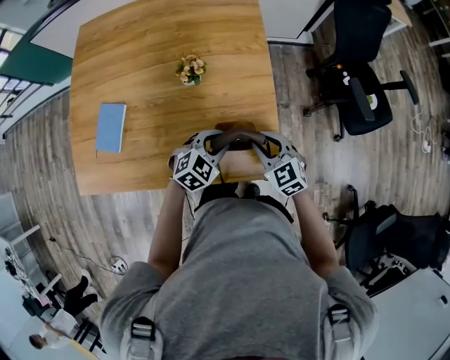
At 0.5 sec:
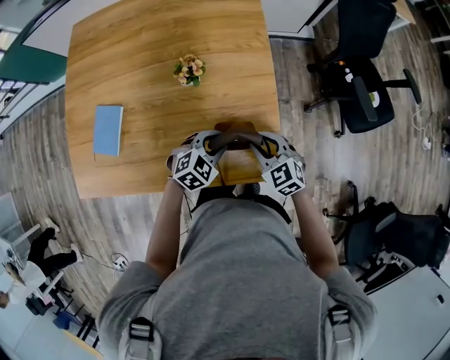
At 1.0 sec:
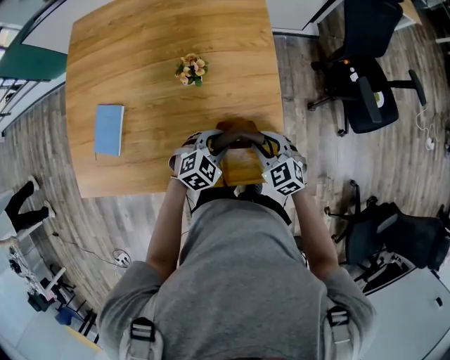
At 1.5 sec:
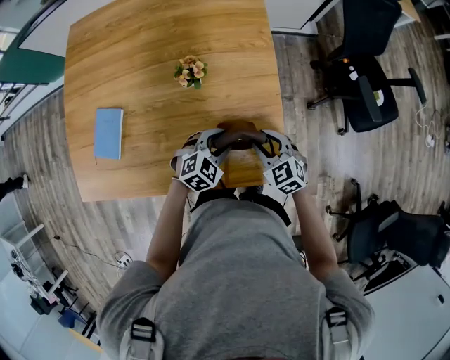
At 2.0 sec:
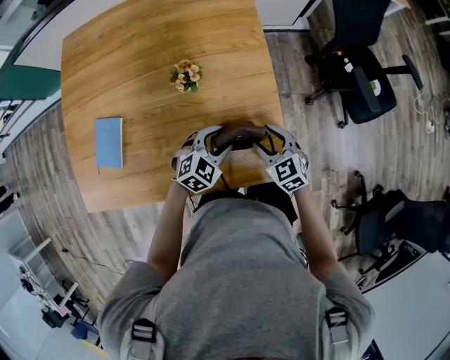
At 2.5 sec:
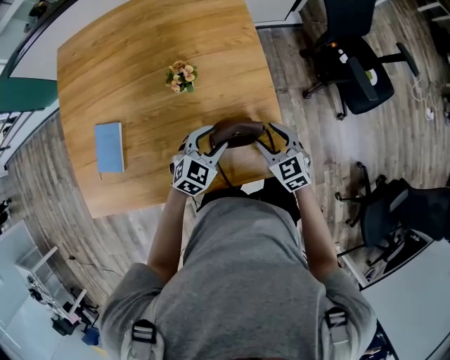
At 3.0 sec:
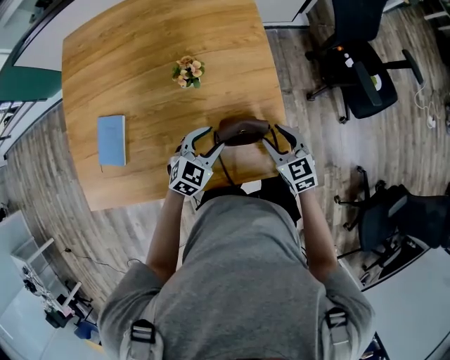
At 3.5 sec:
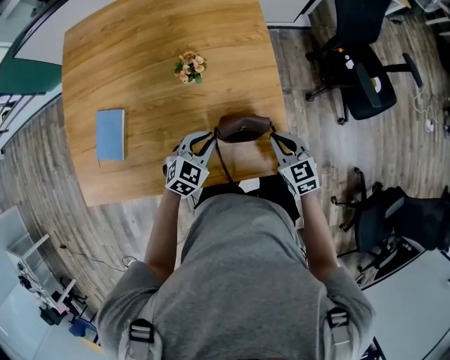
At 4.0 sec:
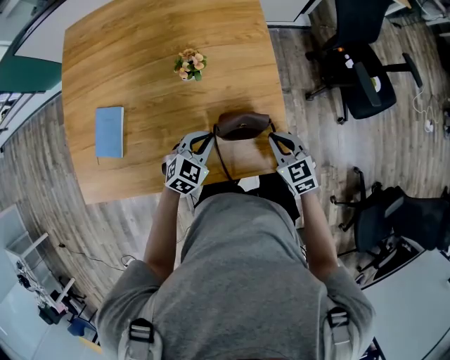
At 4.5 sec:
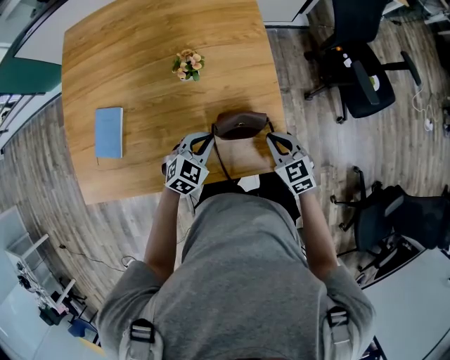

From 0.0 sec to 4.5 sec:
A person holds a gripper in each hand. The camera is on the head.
From 0.0 sec to 2.0 sec: The right gripper changes place by approximately 5 cm, and opens; the left gripper moves about 5 cm, and opens its fingers.
From 2.0 sec to 4.5 sec: The right gripper closes up, while the left gripper shifts about 5 cm to the left, and closes up.

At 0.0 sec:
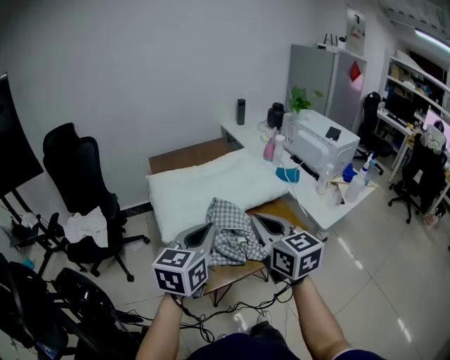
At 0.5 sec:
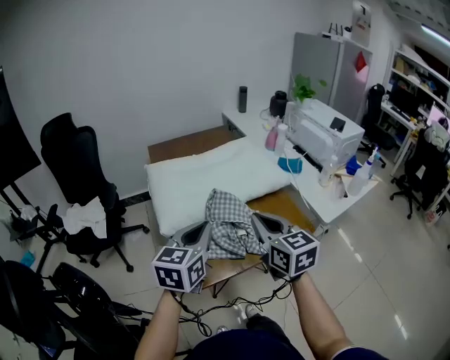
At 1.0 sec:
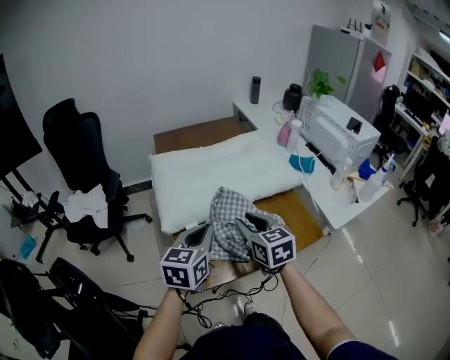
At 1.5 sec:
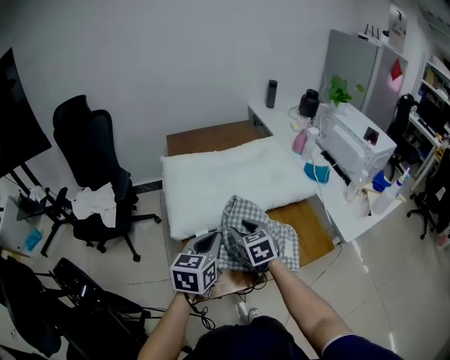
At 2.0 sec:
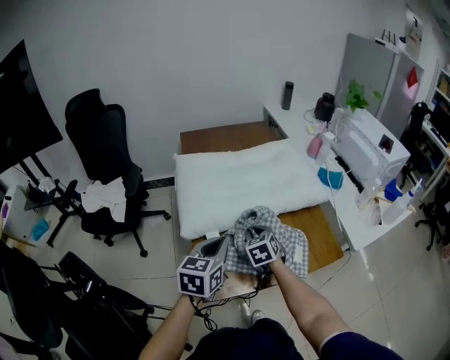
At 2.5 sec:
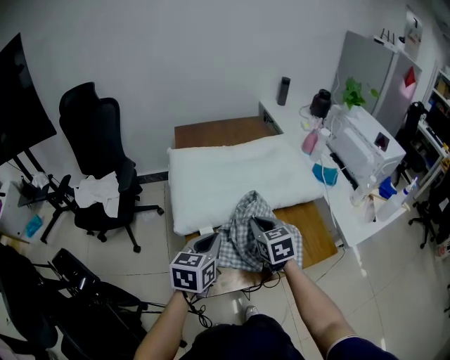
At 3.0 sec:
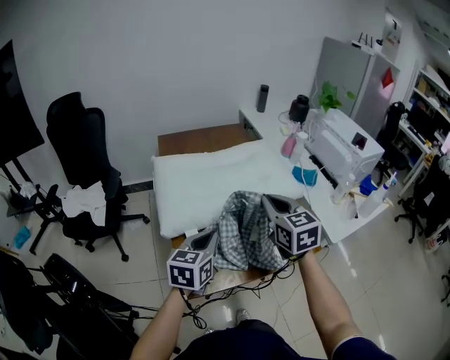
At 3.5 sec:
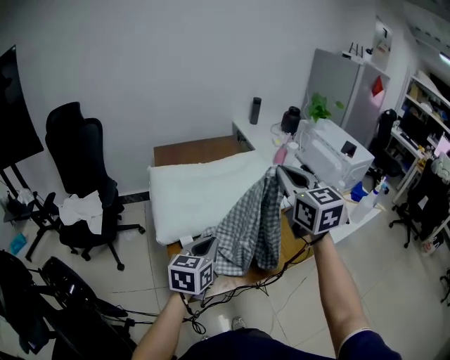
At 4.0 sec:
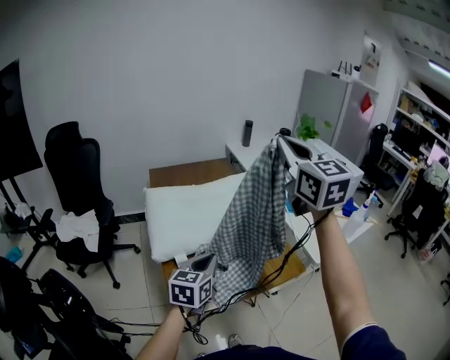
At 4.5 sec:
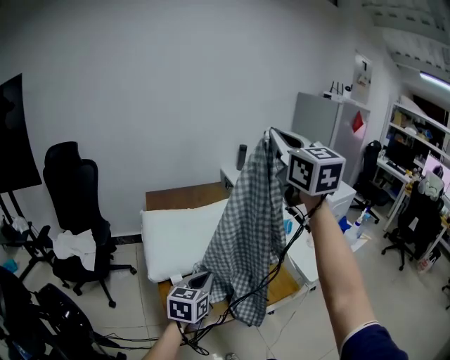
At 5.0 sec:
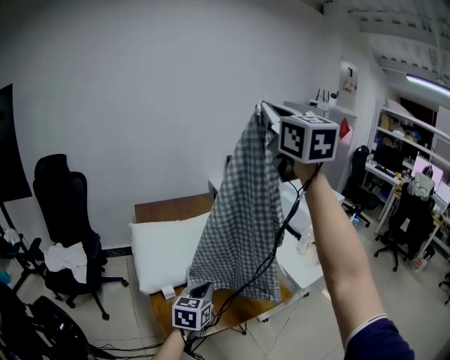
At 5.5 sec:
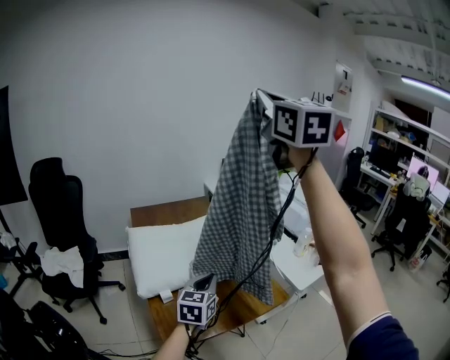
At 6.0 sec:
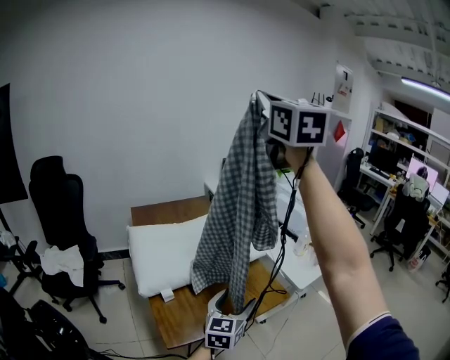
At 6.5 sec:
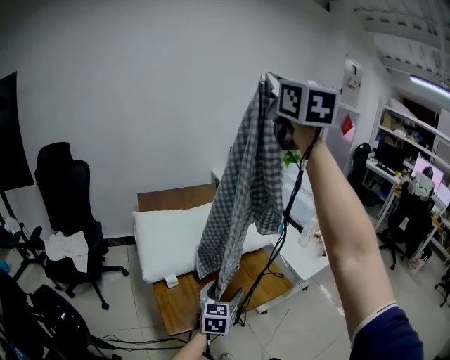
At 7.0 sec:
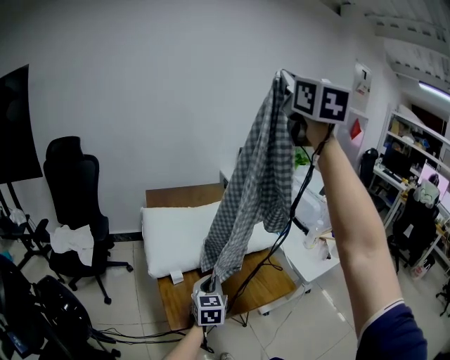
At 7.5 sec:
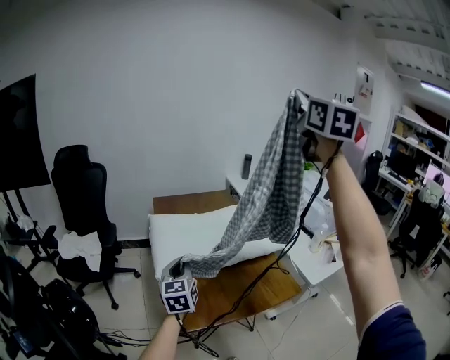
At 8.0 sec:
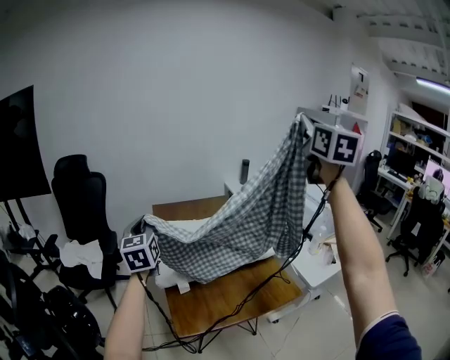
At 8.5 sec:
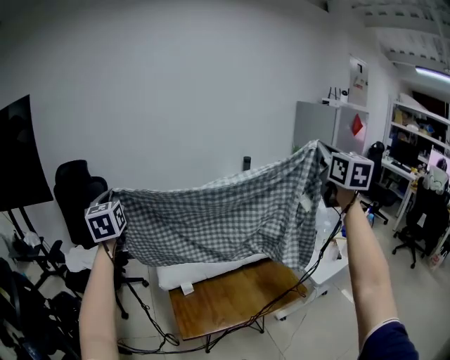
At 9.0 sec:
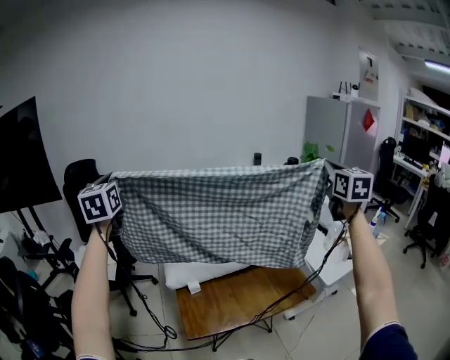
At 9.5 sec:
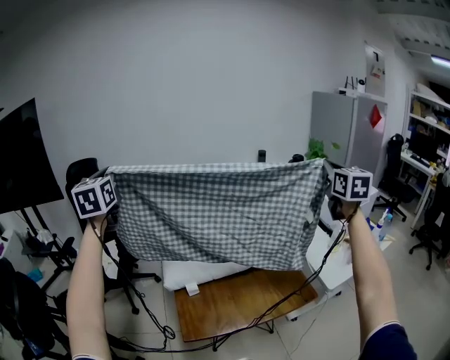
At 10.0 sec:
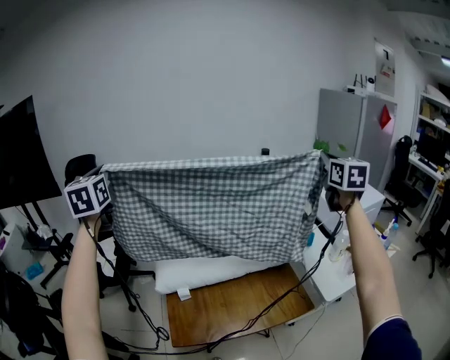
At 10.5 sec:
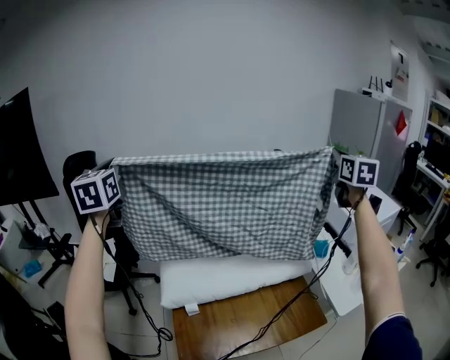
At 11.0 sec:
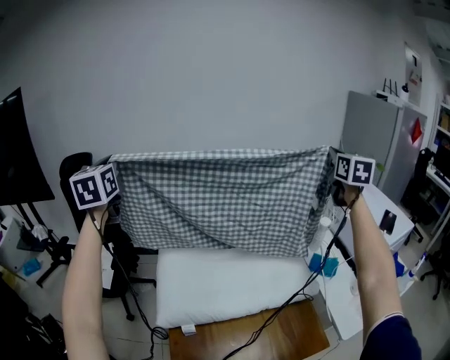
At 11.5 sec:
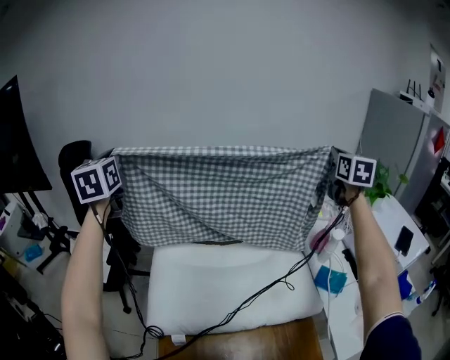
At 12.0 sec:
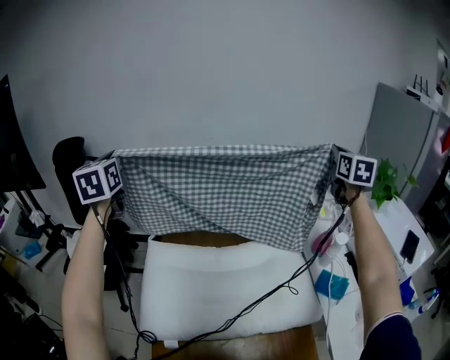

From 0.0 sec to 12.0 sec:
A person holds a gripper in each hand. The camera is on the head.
From 0.0 sec to 2.0 sec: The left gripper shifts some 15 cm downward and forward. Meanwhile the right gripper goes approximately 30 cm downward and forward, angles its fingers downward, by roughly 30 degrees, and opens, then closes again.
From 2.0 sec to 4.0 sec: The left gripper is displaced to the right by some 5 cm; the right gripper moves upward, about 50 cm, and tips its fingers upward by approximately 50 degrees.
From 4.0 sec to 6.0 sec: The right gripper shifts some 20 cm upward; the left gripper heads to the right, covering roughly 15 cm, and opens its fingers.
From 6.0 sec to 8.0 sec: The right gripper travels to the right by approximately 10 cm. The left gripper moves to the left and upward, some 40 cm, swivels about 40 degrees, and closes its fingers.
From 8.0 sec to 10.0 sec: The left gripper shifts roughly 20 cm upward, forward and to the left. The right gripper is displaced downward, forward and to the right by some 30 cm.
From 10.0 sec to 12.0 sec: The grippers both shift forward by approximately 35 cm.

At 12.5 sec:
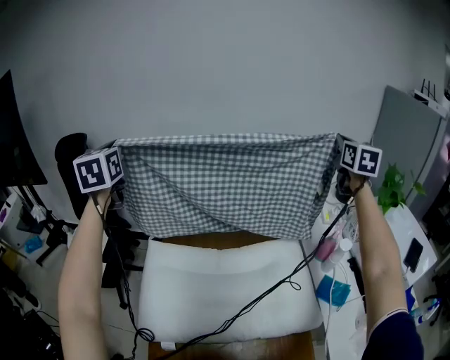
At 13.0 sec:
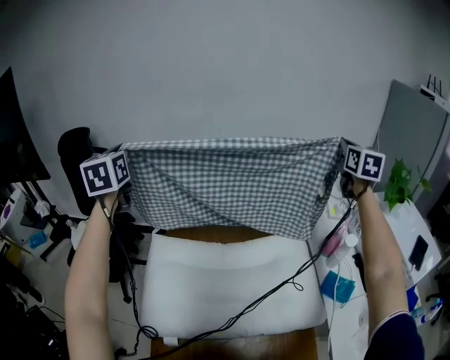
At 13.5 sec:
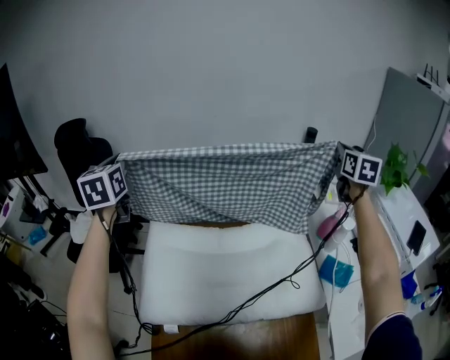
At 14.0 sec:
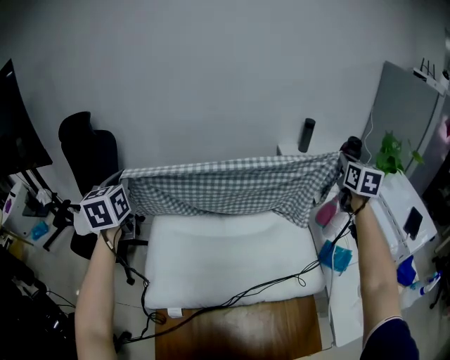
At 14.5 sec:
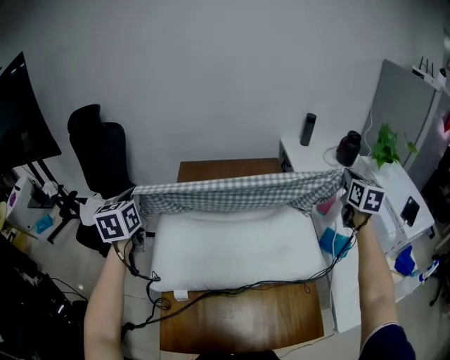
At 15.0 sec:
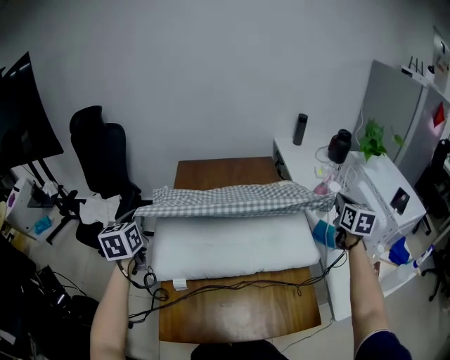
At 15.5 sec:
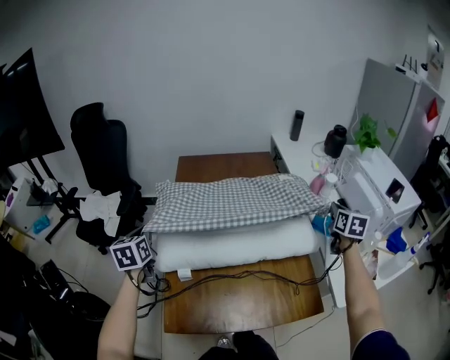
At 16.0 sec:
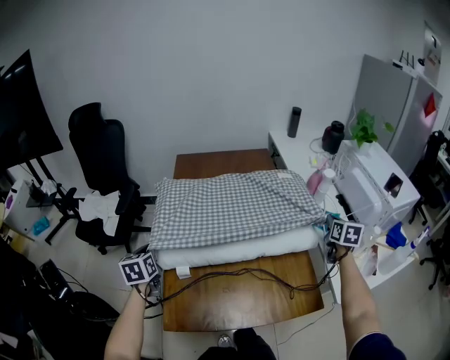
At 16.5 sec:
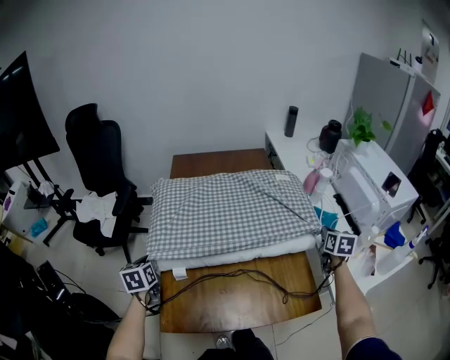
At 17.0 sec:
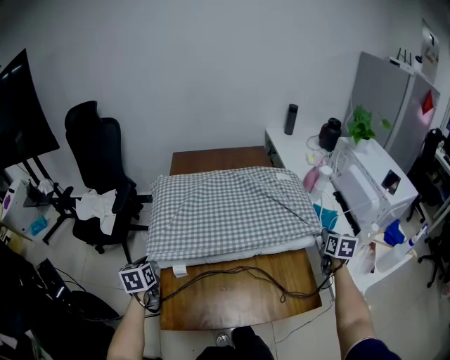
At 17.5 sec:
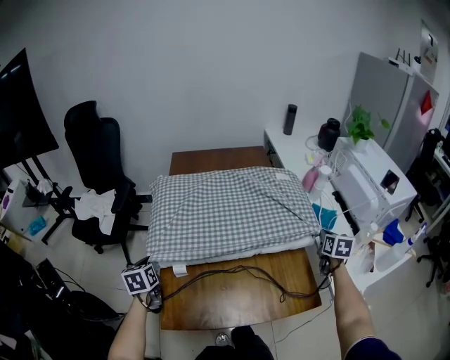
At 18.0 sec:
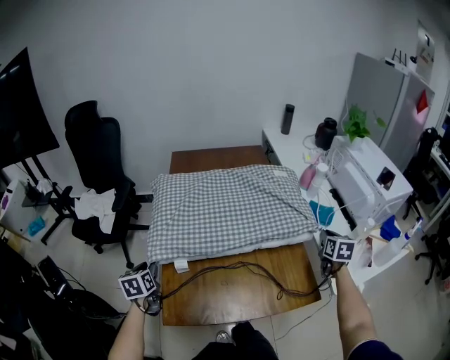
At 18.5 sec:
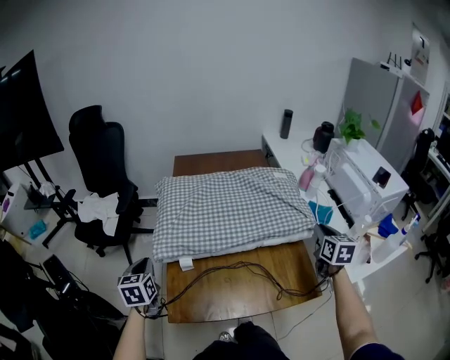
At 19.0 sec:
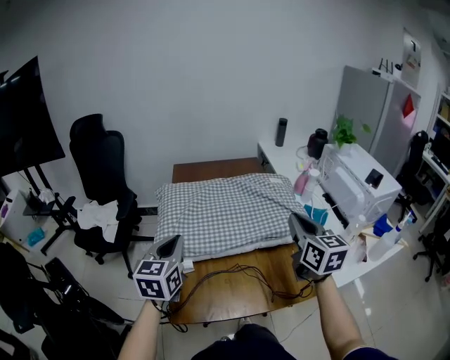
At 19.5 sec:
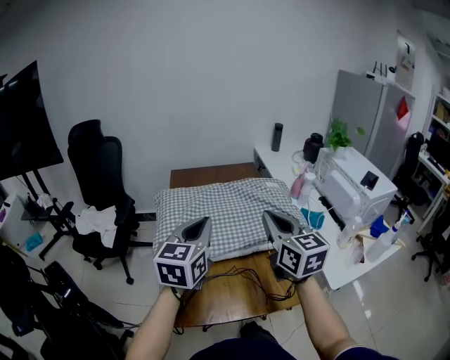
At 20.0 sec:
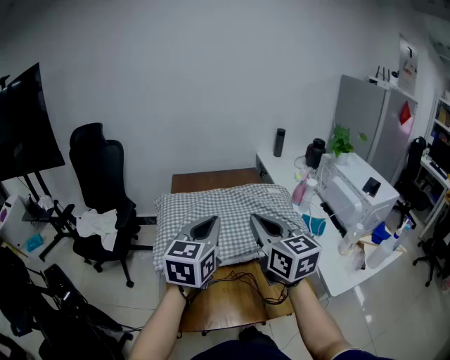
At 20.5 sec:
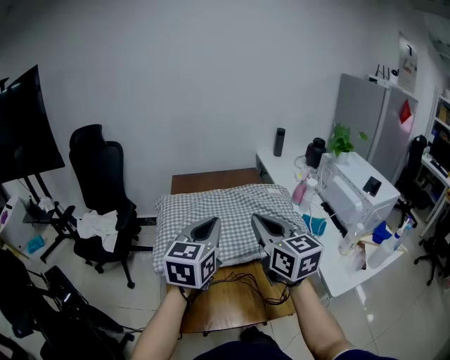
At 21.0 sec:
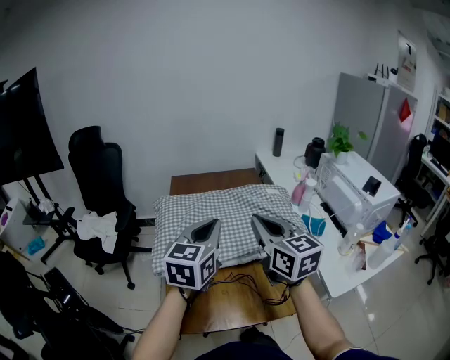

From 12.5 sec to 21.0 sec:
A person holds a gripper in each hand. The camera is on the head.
From 12.5 sec to 14.5 sec: The left gripper heads downward and backward, covering some 25 cm. The right gripper travels backward and downward by about 25 cm.
From 14.5 sec to 16.5 sec: Both grippers travel together downward and backward, about 30 cm. The right gripper changes its angle by some 20 degrees. The left gripper swivels roughly 20 degrees.
From 16.5 sec to 19.0 sec: The left gripper heads upward and to the right, covering about 25 cm, swivels approximately 30 degrees, and opens, then closes again. The right gripper moves upward, to the left and backward, approximately 35 cm, and turns by some 30 degrees.
From 19.0 sec to 21.0 sec: The left gripper heads to the right and upward, covering approximately 15 cm. The right gripper travels to the left by approximately 10 cm.

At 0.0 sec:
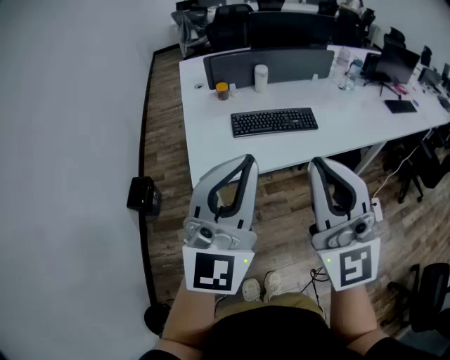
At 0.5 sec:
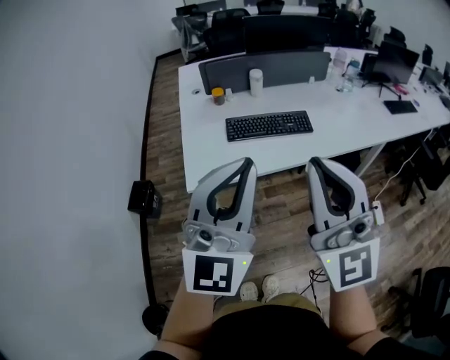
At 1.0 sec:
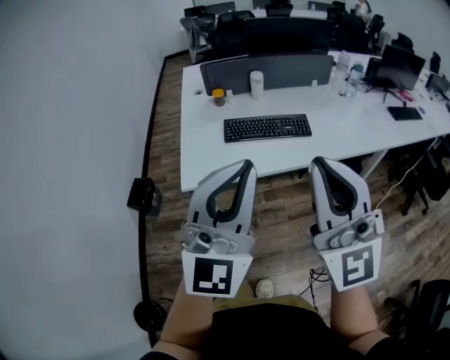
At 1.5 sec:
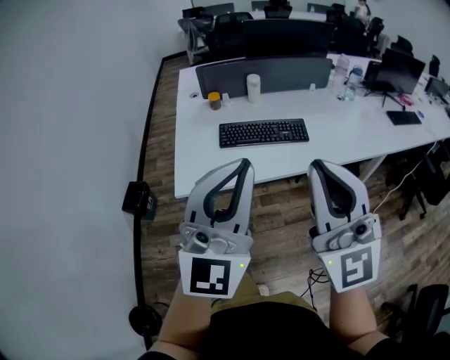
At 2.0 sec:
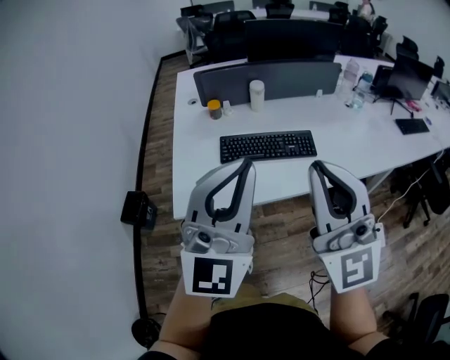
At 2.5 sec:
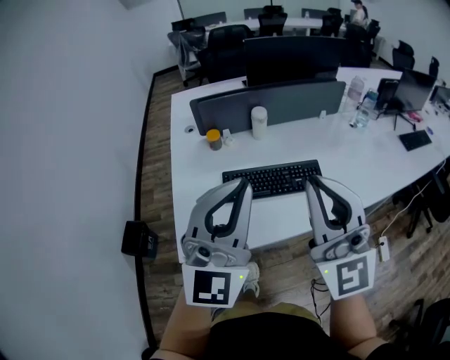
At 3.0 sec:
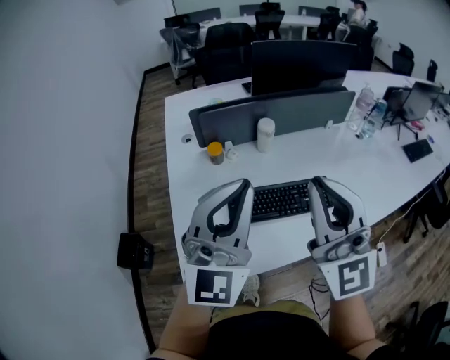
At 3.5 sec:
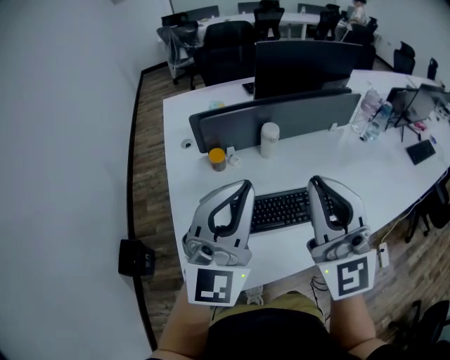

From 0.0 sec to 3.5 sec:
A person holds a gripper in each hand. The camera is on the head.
From 0.0 sec to 2.0 sec: Both grippers move forward and to the right, about 15 cm.
From 2.0 sec to 3.5 sec: The grippers both shift forward by about 30 cm.
